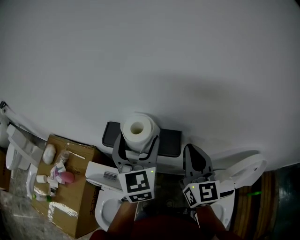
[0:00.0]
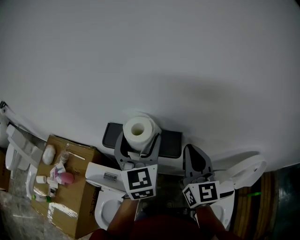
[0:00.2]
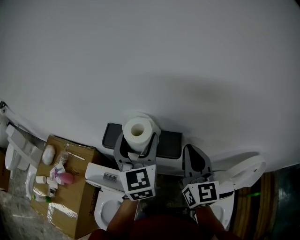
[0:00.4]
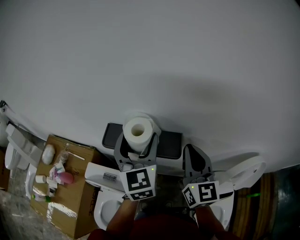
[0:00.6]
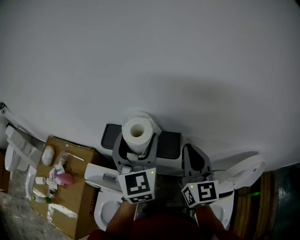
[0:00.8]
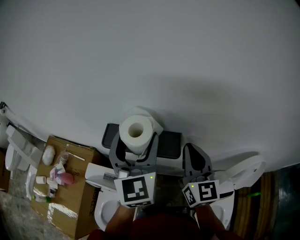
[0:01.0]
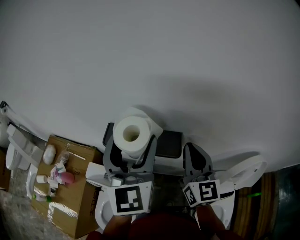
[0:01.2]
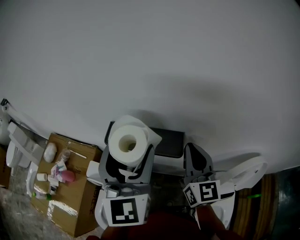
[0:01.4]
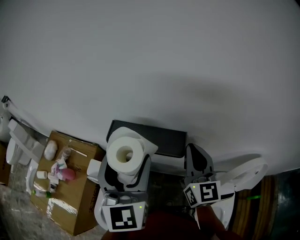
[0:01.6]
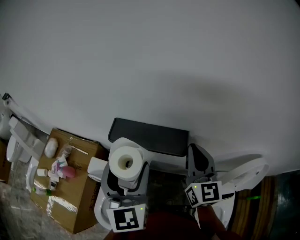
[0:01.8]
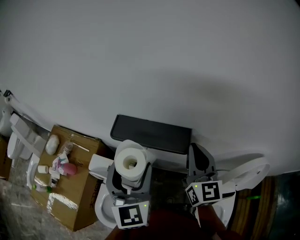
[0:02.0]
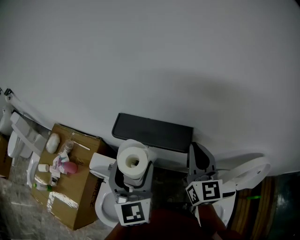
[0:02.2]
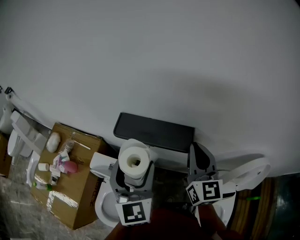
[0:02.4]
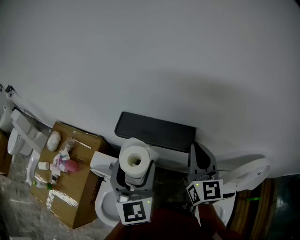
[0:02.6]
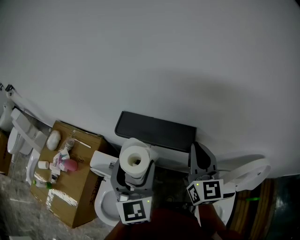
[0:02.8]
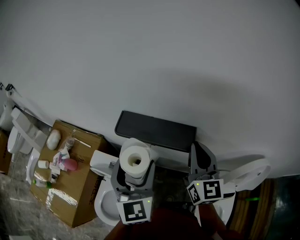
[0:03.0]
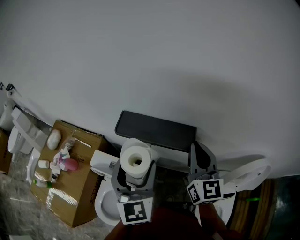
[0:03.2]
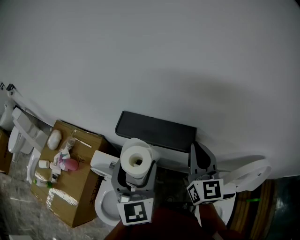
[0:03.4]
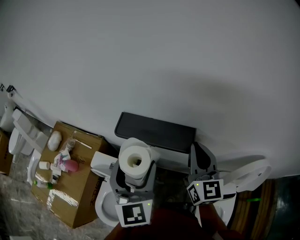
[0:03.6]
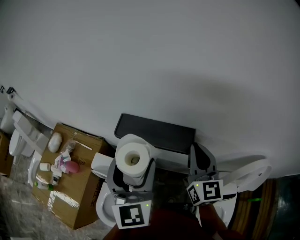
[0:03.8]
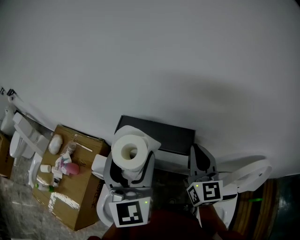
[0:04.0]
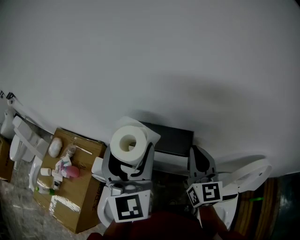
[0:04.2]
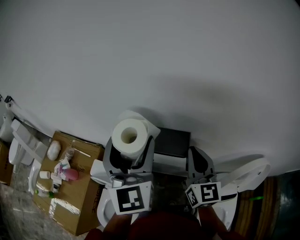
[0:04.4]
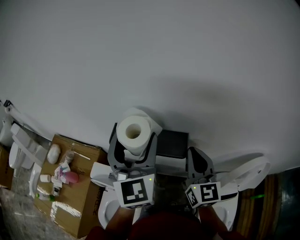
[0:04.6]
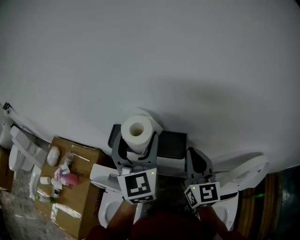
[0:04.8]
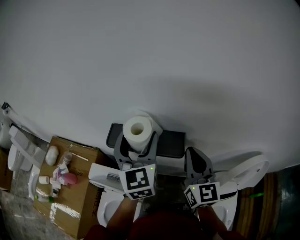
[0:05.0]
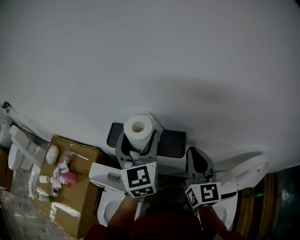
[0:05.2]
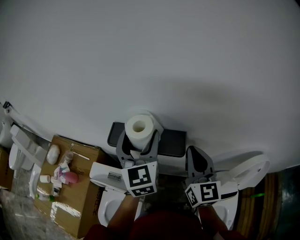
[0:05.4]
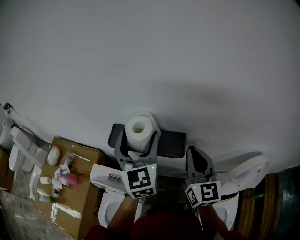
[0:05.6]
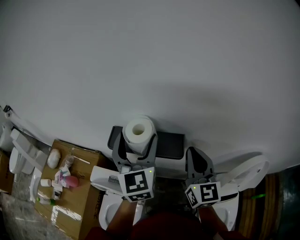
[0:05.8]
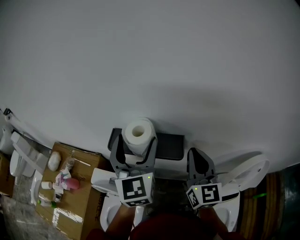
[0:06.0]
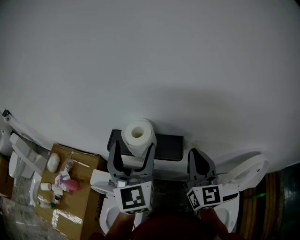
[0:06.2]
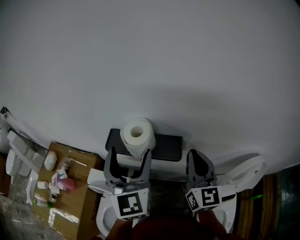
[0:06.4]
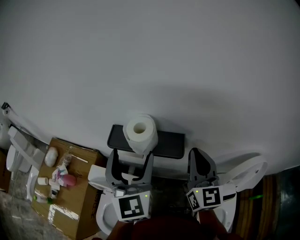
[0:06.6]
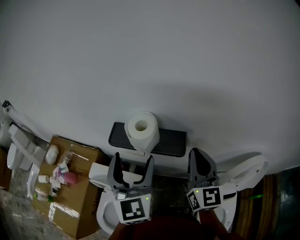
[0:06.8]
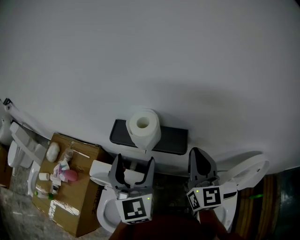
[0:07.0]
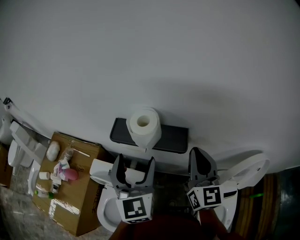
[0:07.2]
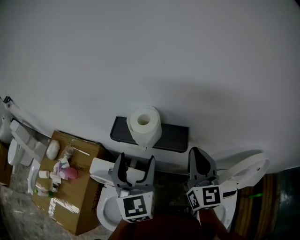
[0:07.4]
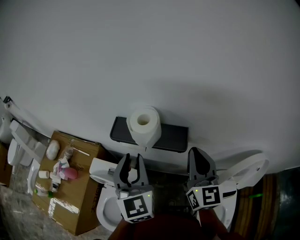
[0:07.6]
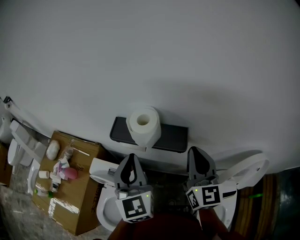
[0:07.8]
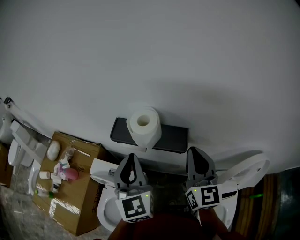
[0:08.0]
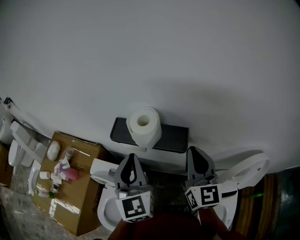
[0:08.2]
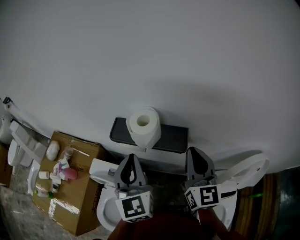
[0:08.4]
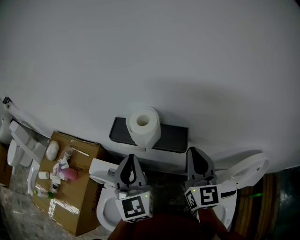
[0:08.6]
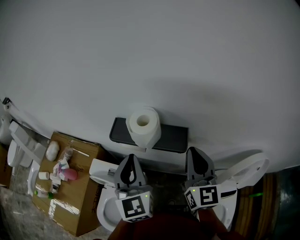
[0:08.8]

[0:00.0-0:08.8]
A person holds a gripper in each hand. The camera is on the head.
0:00.0 to 0:01.4: The left gripper moves upward and backward, approximately 10 cm.
0:01.4 to 0:03.0: The left gripper moves downward, some 10 cm.
0:03.0 to 0:04.4: The left gripper travels upward and forward by some 10 cm.
0:04.4 to 0:05.8: The left gripper changes place by some 5 cm.
0:05.8 to 0:07.4: The left gripper moves backward, approximately 10 cm.
0:07.4 to 0:08.8: The left gripper closes its fingers.

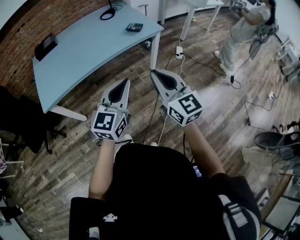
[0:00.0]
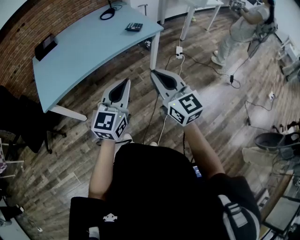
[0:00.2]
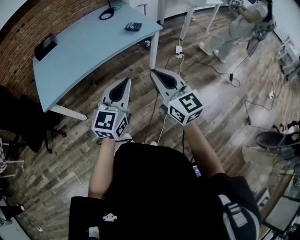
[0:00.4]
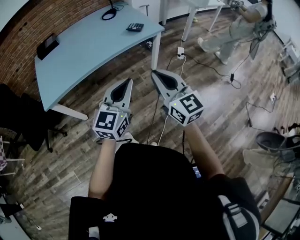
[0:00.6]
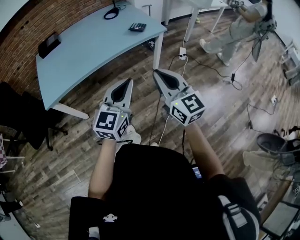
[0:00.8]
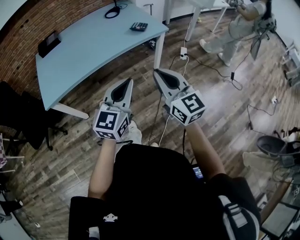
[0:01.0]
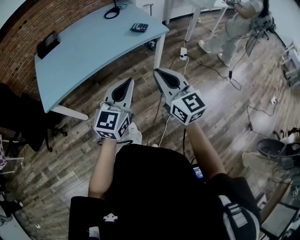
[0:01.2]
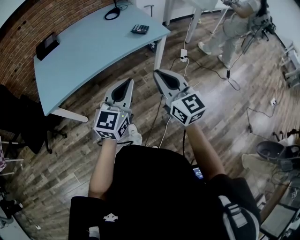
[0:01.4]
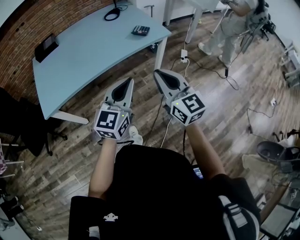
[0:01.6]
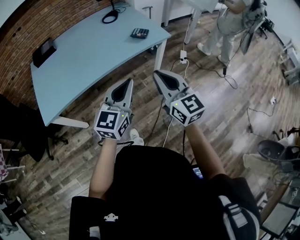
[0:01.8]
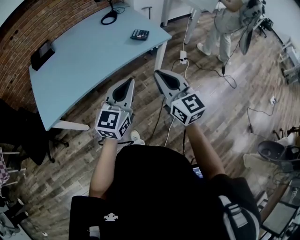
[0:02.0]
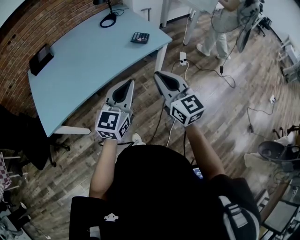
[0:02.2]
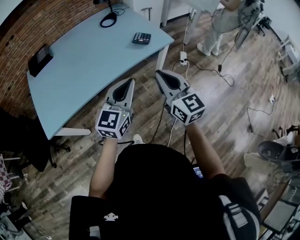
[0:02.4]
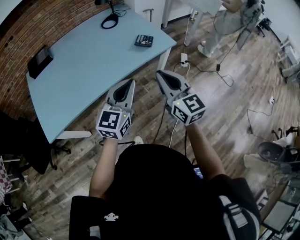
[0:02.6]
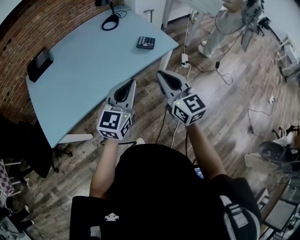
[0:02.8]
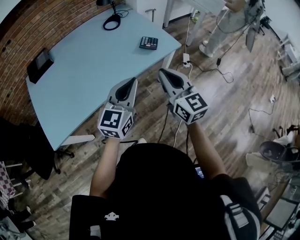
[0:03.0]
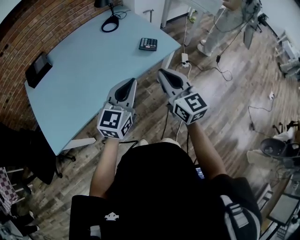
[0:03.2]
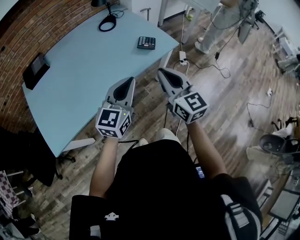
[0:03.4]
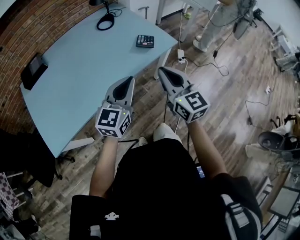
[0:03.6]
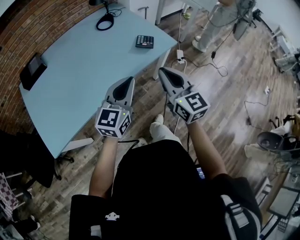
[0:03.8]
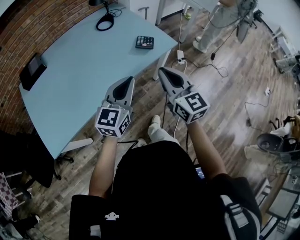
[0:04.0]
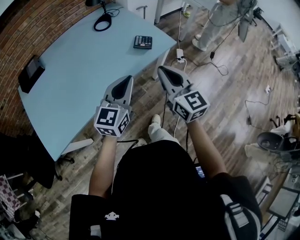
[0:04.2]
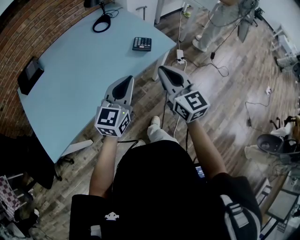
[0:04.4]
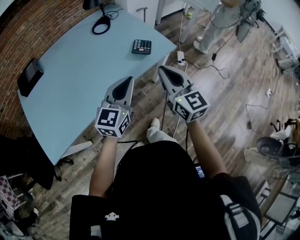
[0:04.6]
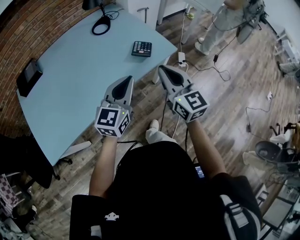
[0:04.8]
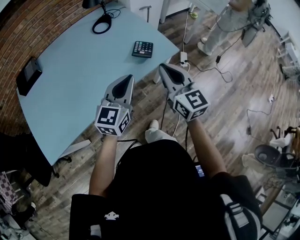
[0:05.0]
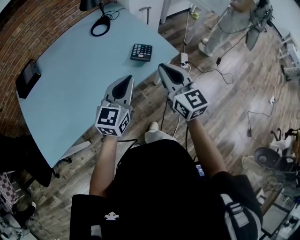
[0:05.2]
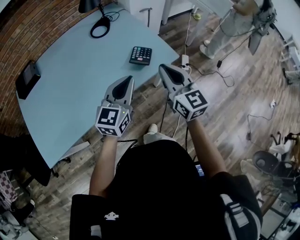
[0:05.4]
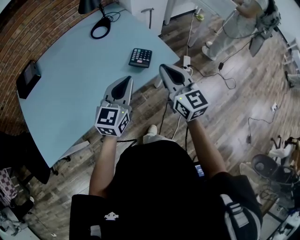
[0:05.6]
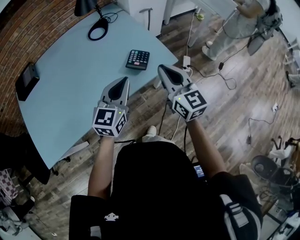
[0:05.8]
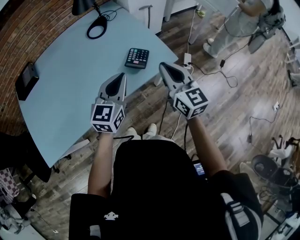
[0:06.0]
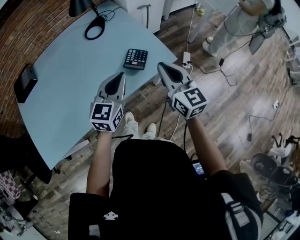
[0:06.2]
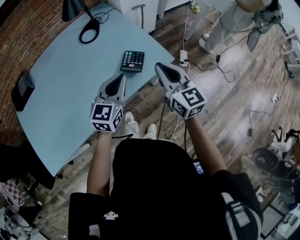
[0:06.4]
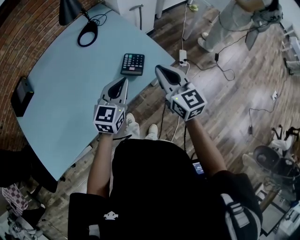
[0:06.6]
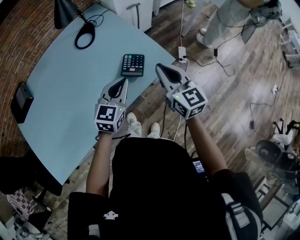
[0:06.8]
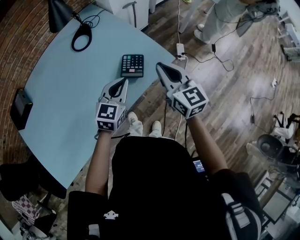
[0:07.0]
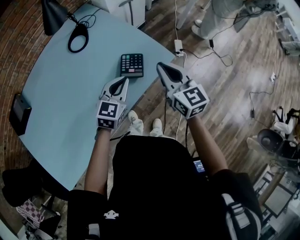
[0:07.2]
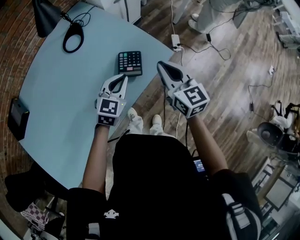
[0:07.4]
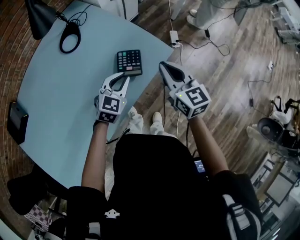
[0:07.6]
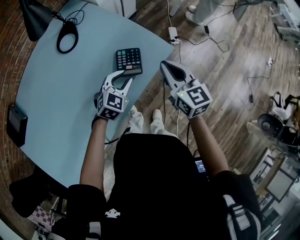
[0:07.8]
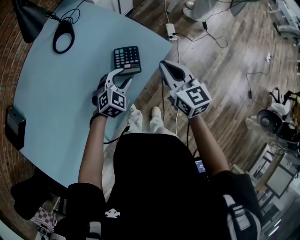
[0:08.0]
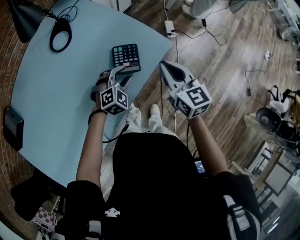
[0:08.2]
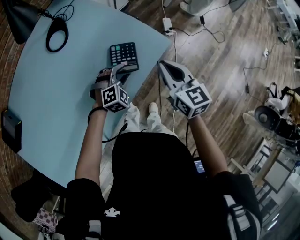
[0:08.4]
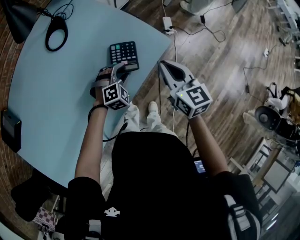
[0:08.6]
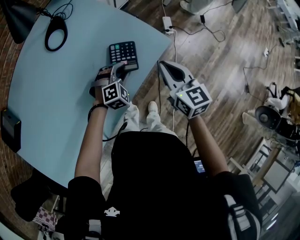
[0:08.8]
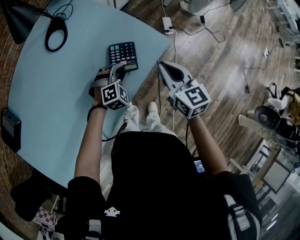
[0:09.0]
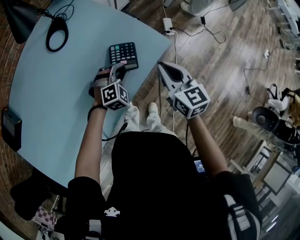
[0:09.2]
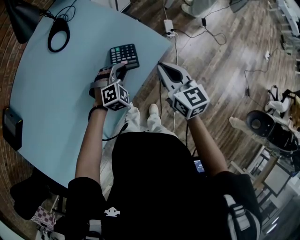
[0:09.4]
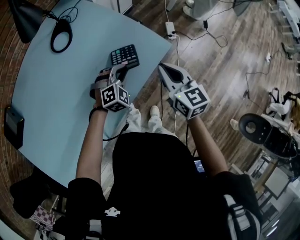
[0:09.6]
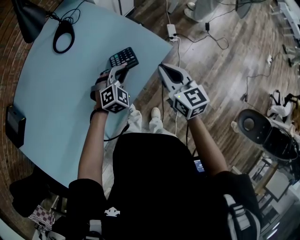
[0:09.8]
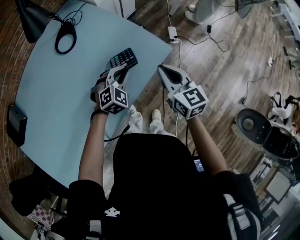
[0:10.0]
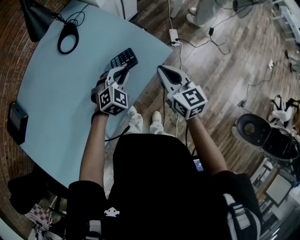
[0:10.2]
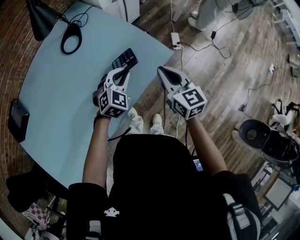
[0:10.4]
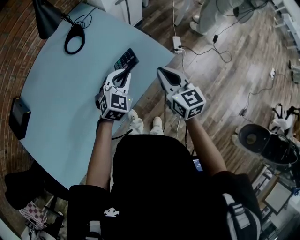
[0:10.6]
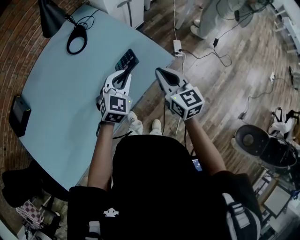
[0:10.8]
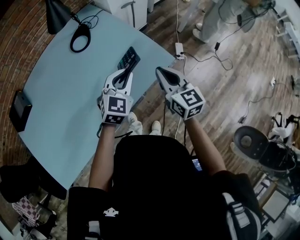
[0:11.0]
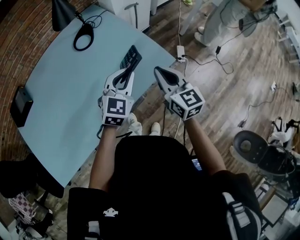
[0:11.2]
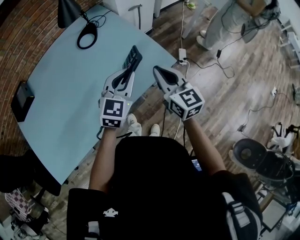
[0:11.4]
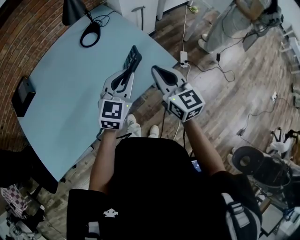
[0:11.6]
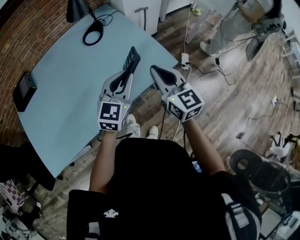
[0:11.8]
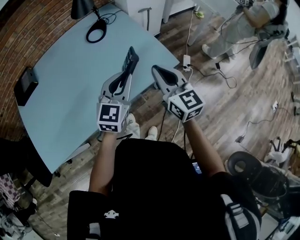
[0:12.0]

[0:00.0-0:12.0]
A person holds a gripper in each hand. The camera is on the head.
0:00.0 to 0:01.6: Both grippers travel together forward, some 10 cm.
0:01.6 to 0:03.0: The two grippers go about 20 cm forward.
0:03.0 to 0:04.4: The left gripper is displaced forward by roughly 5 cm. Meanwhile the right gripper moves about 5 cm.
0:04.4 to 0:06.0: The right gripper is displaced forward and to the right by about 20 cm; the left gripper heads forward, covering some 15 cm.
0:06.0 to 0:07.6: The left gripper travels downward and forward by roughly 20 cm, and turns by approximately 40 degrees, while the right gripper shifts some 10 cm downward and forward.
0:07.6 to 0:09.0: The left gripper moves downward, some 10 cm, and swivels approximately 40 degrees.
0:09.0 to 0:10.4: The left gripper moves upward, approximately 10 cm, and changes its angle by some 30 degrees.
0:10.4 to 0:12.0: The left gripper heads upward and backward, covering approximately 20 cm, and swivels some 40 degrees. The right gripper travels upward and backward by about 10 cm, and swivels roughly 20 degrees.

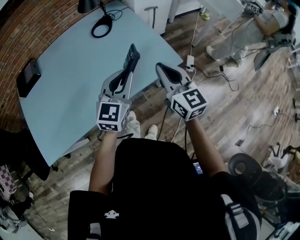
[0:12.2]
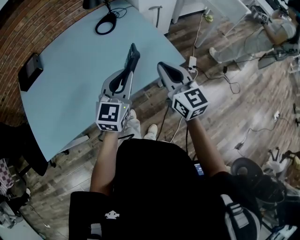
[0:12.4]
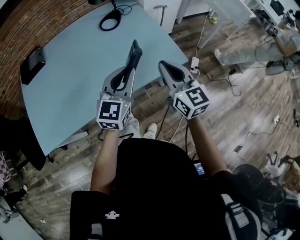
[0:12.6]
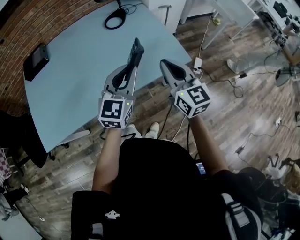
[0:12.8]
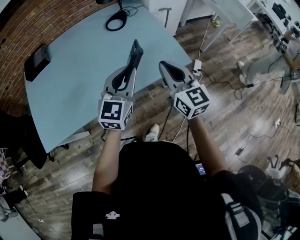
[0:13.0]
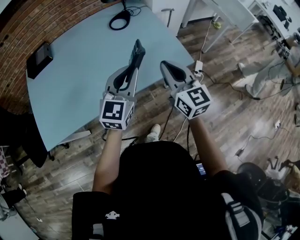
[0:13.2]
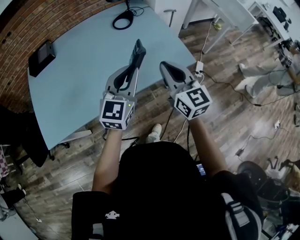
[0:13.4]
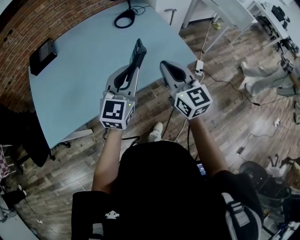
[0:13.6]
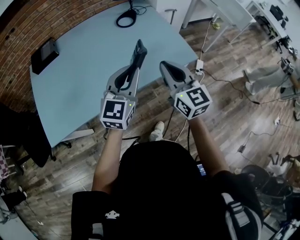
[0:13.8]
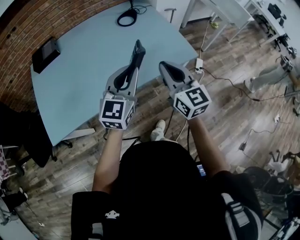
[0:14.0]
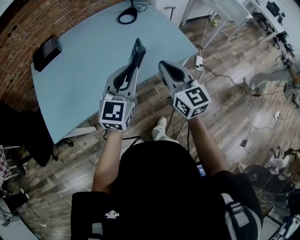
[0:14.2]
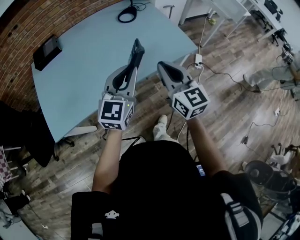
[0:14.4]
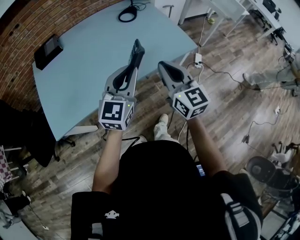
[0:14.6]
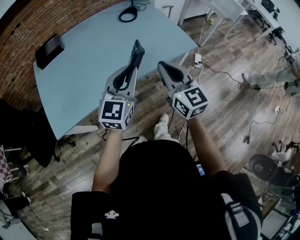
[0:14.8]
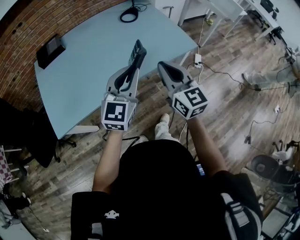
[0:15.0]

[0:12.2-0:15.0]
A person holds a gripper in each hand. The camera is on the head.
0:12.2 to 0:13.6: Both grippers move to the left and backward, roughly 10 cm.
0:13.6 to 0:15.0: The grippers both shift backward and to the left by about 15 cm.
